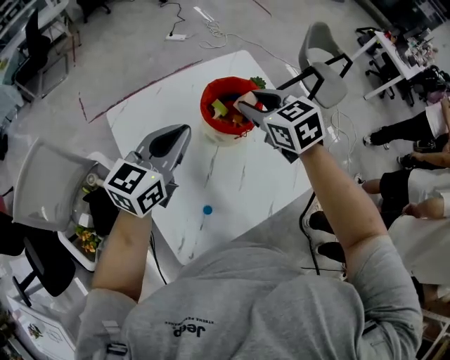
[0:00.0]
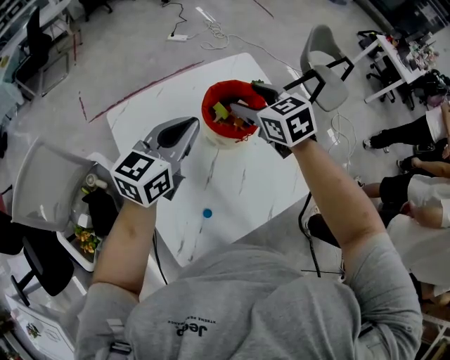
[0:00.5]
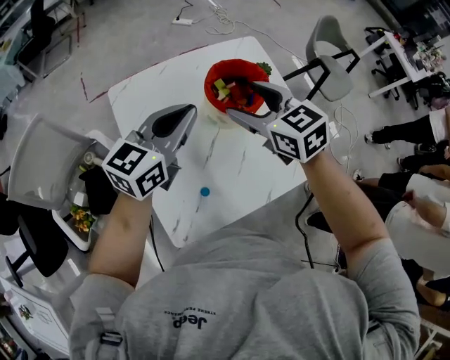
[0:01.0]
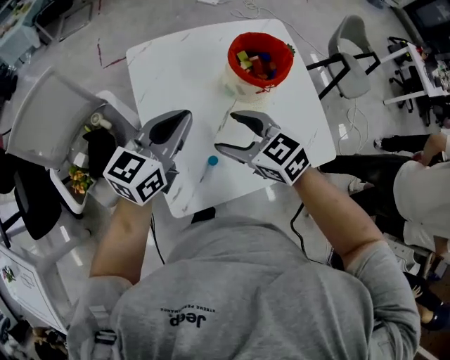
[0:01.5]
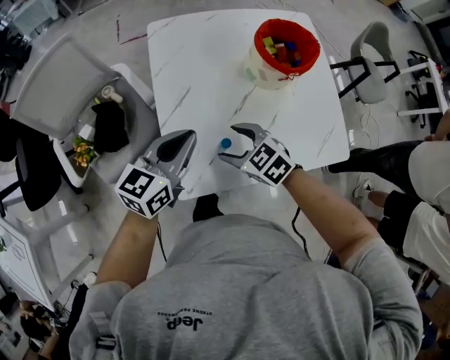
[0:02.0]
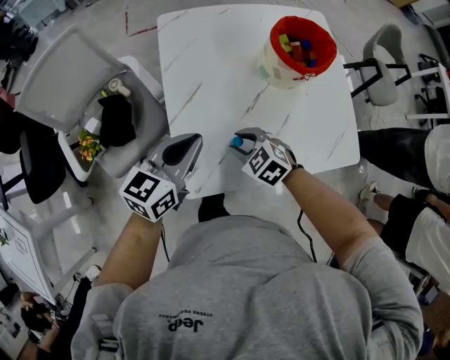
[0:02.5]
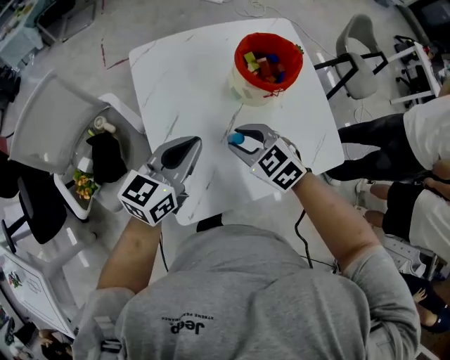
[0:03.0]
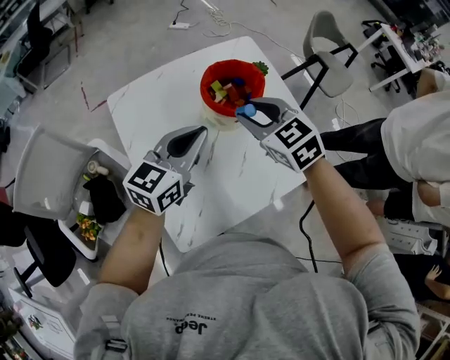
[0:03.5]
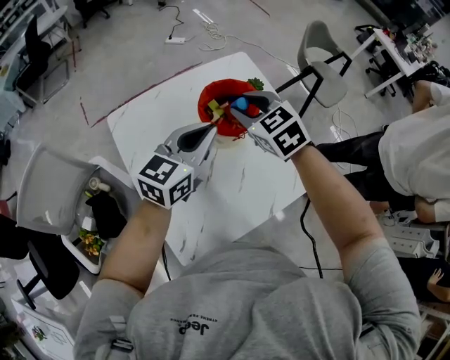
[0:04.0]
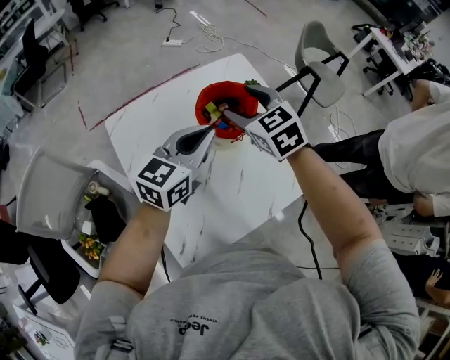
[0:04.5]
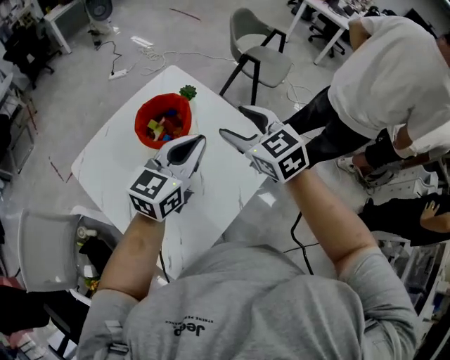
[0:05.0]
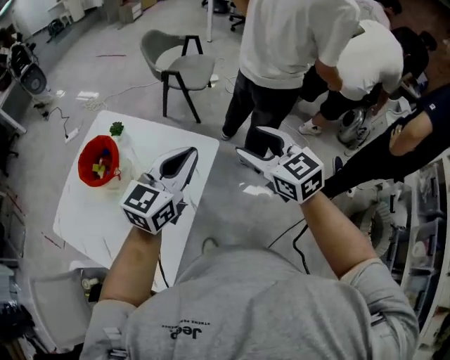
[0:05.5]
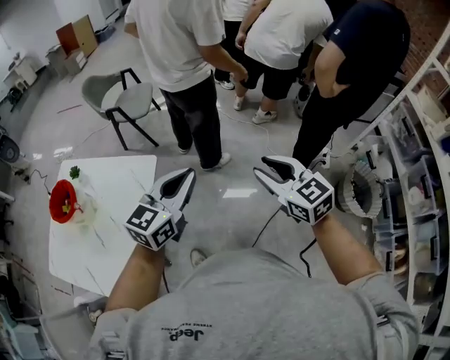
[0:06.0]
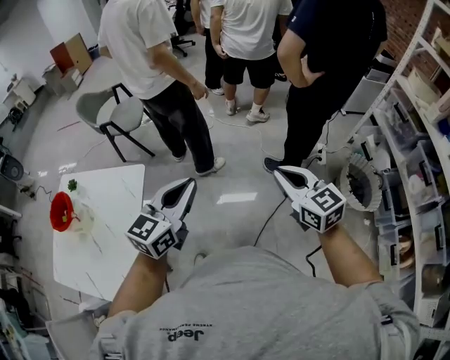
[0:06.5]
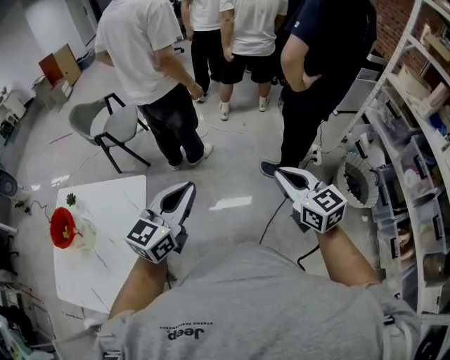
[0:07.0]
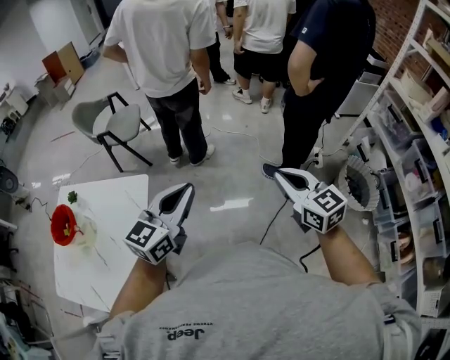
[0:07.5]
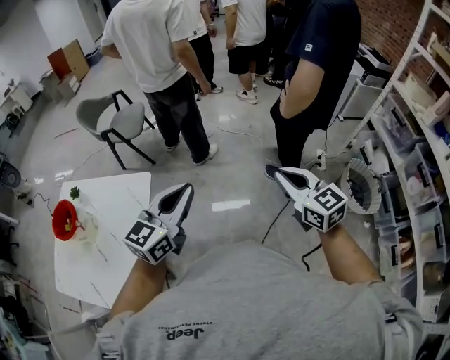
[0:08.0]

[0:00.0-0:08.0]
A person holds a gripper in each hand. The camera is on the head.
0:00.0 to 0:02.0: The left gripper ends up approximately 25 cm from where it was; the right gripper changes place by roughly 35 cm, turns by approximately 40 degrees, and opens up.
0:02.0 to 0:04.0: The left gripper moves some 25 cm, and swivels approximately 20 degrees. Meanwhile the right gripper changes place by about 35 cm, swivels approximately 40 degrees, and closes up.
0:04.0 to 0:06.0: Both grippers are carried roughly 70 cm. The left gripper turns by roughly 50 degrees. Meanwhile the right gripper swivels some 60 degrees, and opens, then closes once more.
0:06.0 to 0:08.0: The right gripper heads to the right, covering about 10 cm, and closes up.

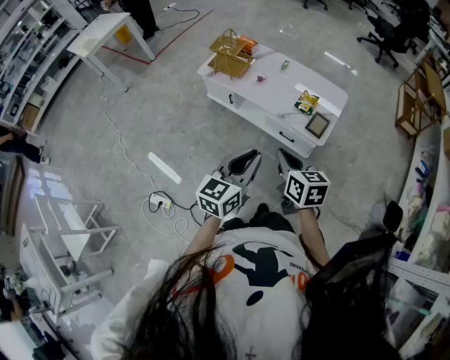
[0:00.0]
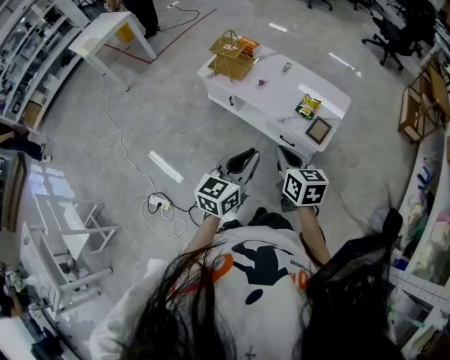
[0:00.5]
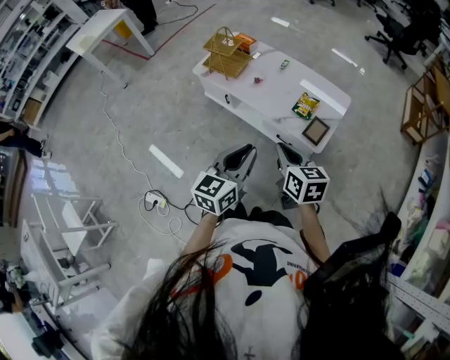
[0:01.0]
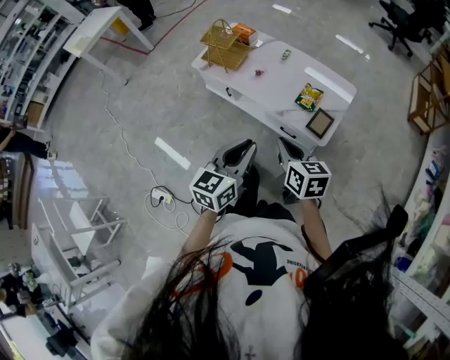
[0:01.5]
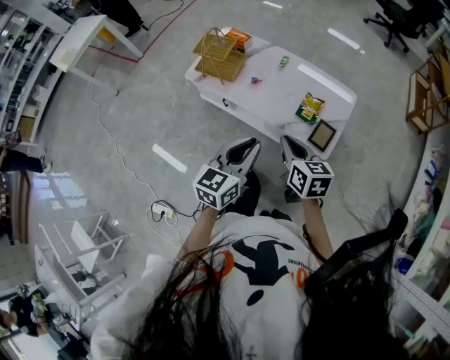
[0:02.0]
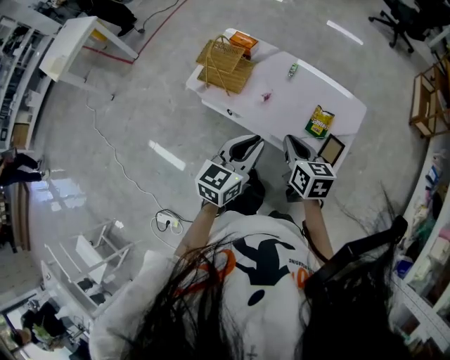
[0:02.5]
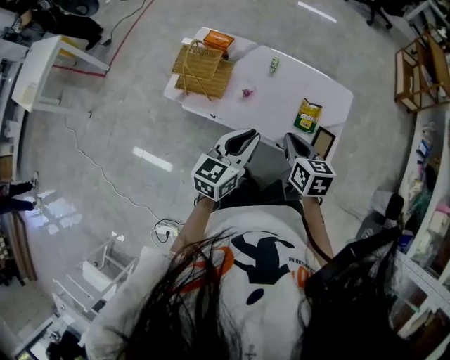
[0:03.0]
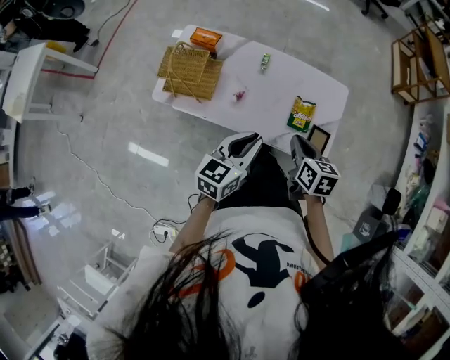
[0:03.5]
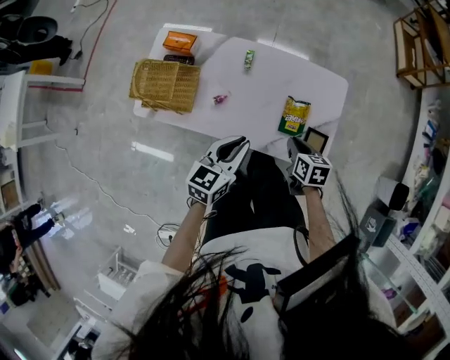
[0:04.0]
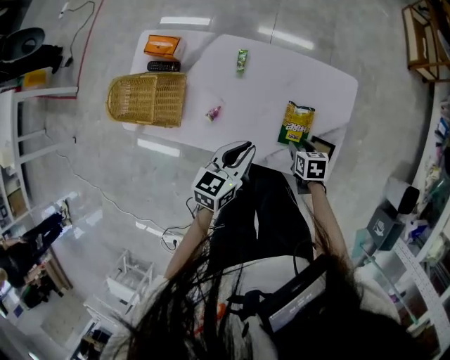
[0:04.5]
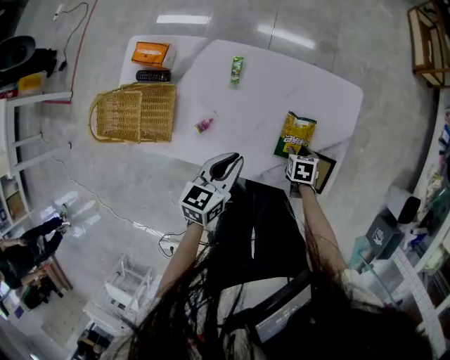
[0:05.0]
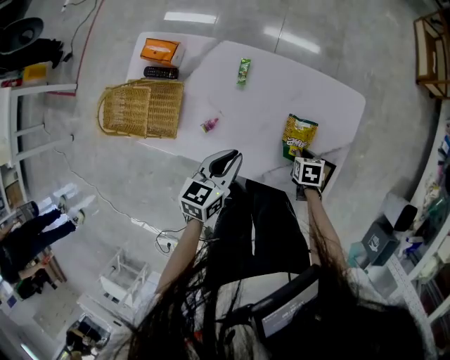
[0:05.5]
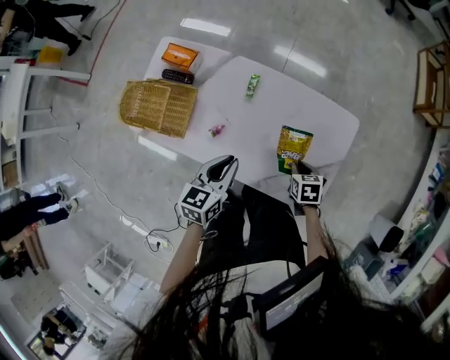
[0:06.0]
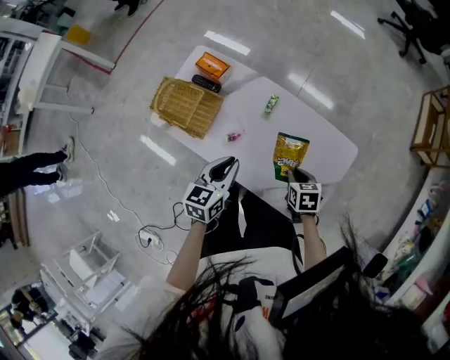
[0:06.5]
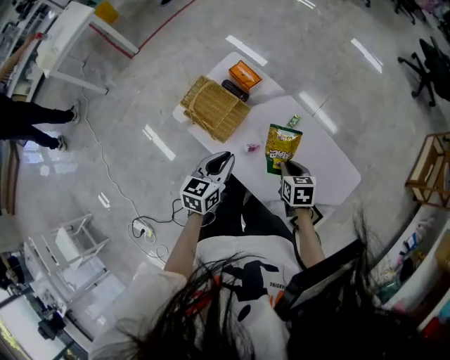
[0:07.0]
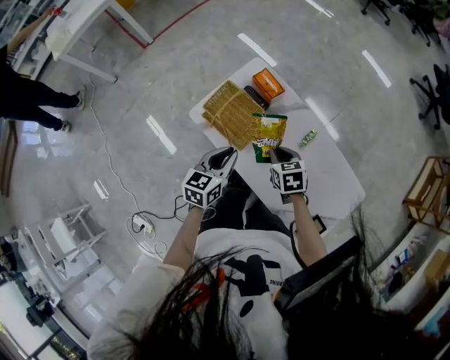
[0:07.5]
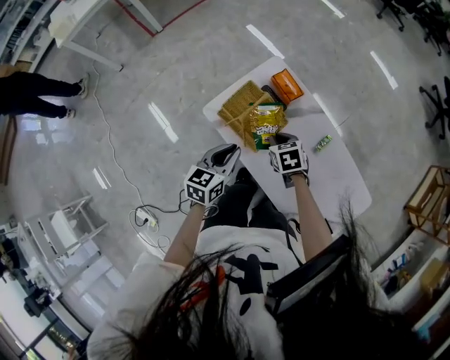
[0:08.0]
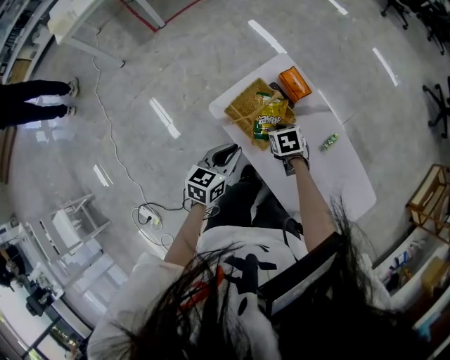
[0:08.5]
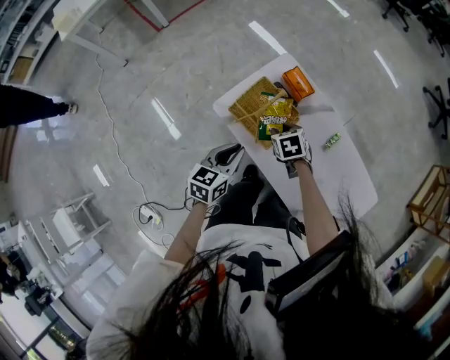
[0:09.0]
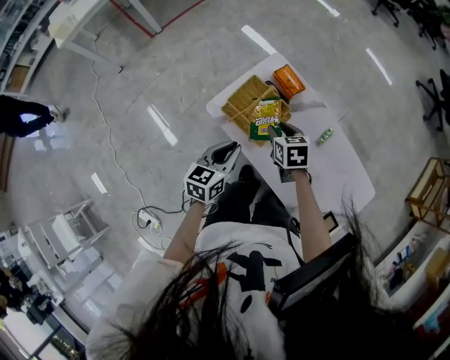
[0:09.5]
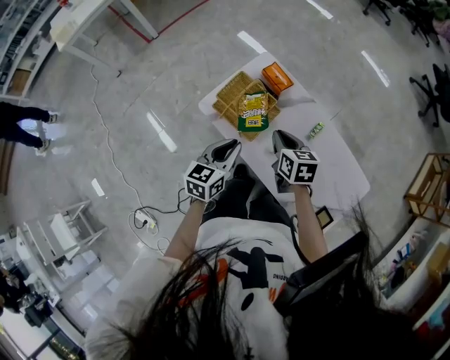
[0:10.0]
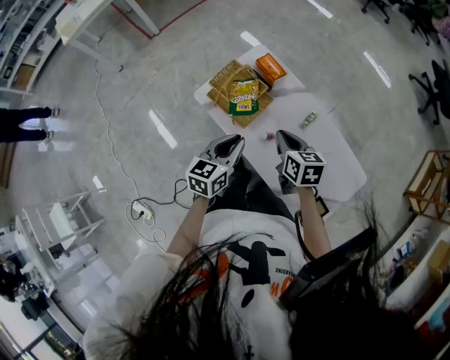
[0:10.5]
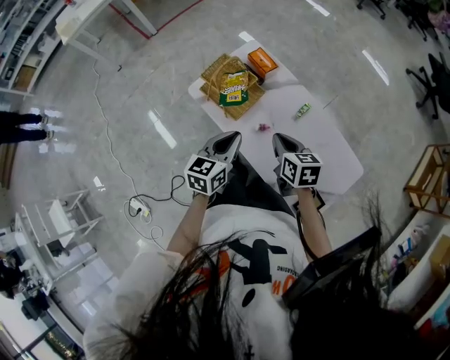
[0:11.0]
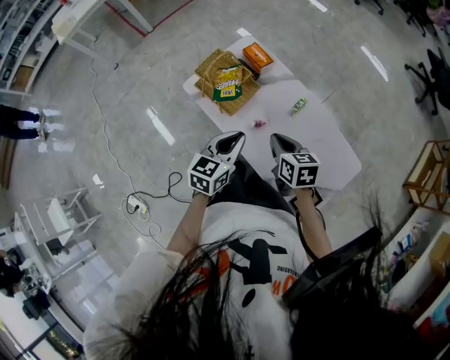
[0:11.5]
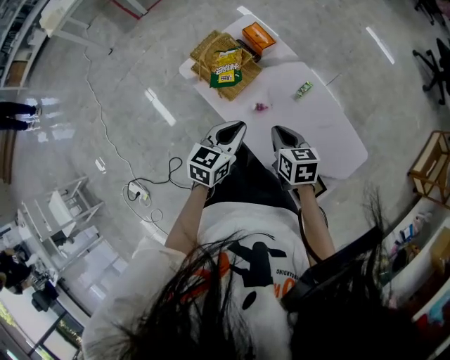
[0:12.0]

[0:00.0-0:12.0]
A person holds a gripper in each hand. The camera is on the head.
0:00.0 to 0:02.0: Both grippers travel together forward, roughly 20 cm.
0:02.0 to 0:04.0: The left gripper travels forward and downward by about 30 cm, and rotates some 20 degrees. Meanwhile the right gripper heads downward and forward, covering about 30 cm, and swivels some 30 degrees.
0:04.0 to 0:06.0: The left gripper heads forward and downward, covering approximately 10 cm. Meanwhile the right gripper shifts some 15 cm downward and forward, swivels roughly 20 degrees, and opens, then closes again.
0:06.0 to 0:08.0: The left gripper shifts by about 30 cm, and swivels roughly 20 degrees; the right gripper ends up about 50 cm from where it was, and turns by approximately 40 degrees.
0:08.0 to 0:10.0: The left gripper ends up about 5 cm from where it was; the right gripper travels upward and backward by approximately 10 cm, changes its angle by some 30 degrees, and opens, then closes once more.
0:10.0 to 0:12.0: The left gripper goes approximately 15 cm to the right and backward. The right gripper moves backward and to the right, some 15 cm.

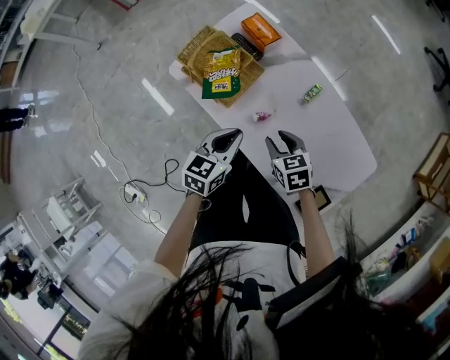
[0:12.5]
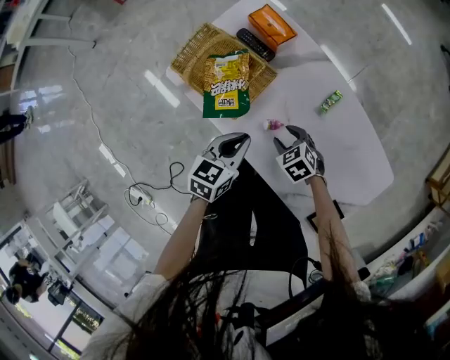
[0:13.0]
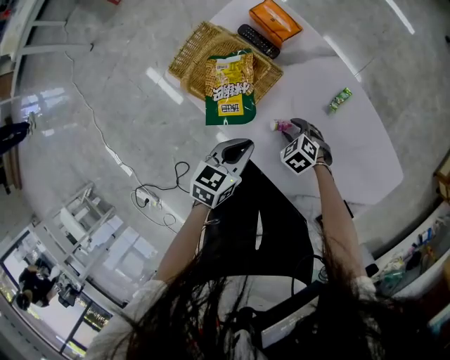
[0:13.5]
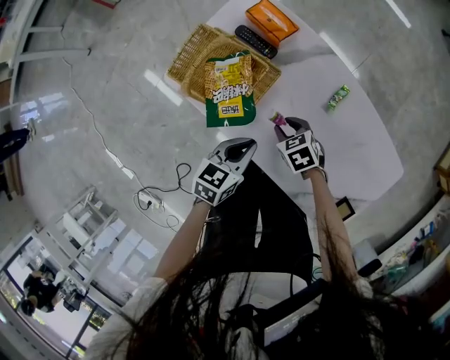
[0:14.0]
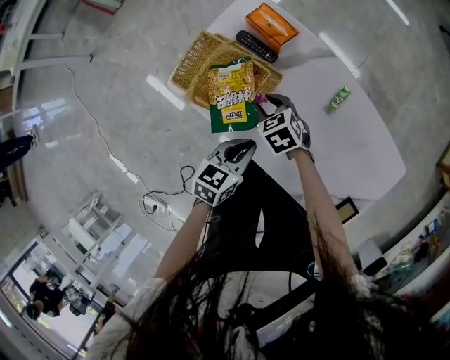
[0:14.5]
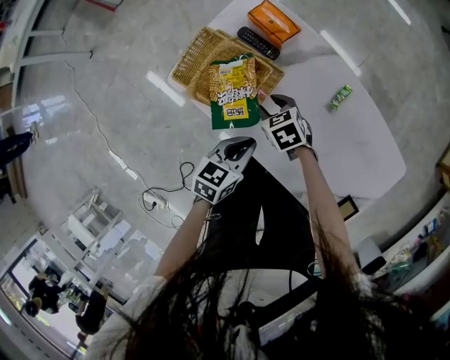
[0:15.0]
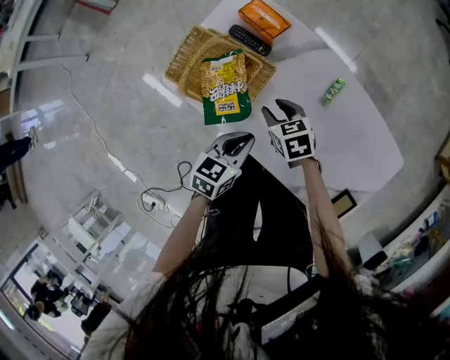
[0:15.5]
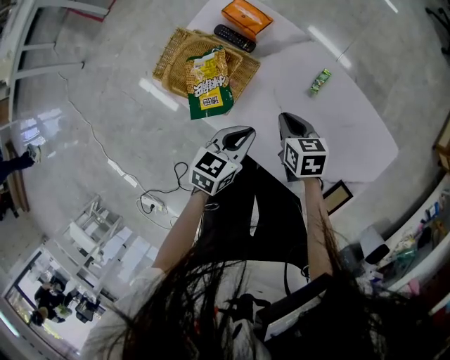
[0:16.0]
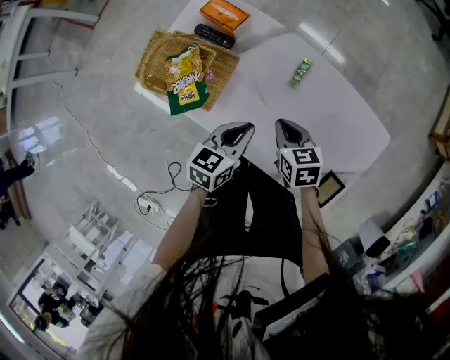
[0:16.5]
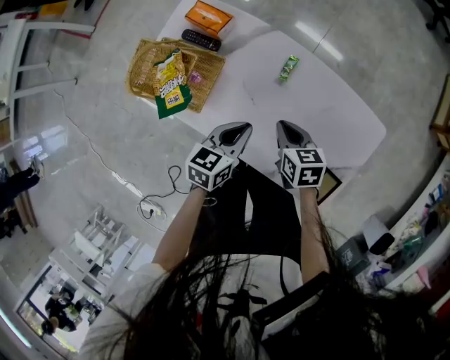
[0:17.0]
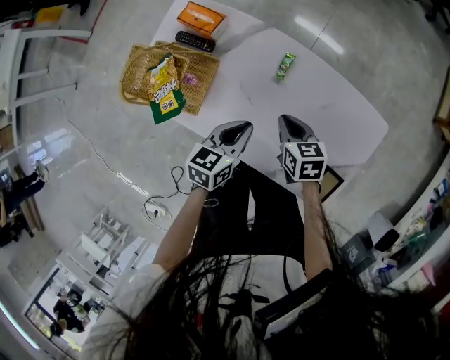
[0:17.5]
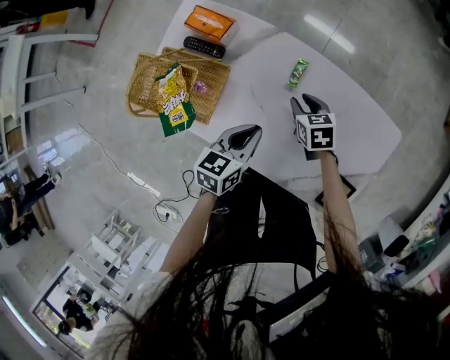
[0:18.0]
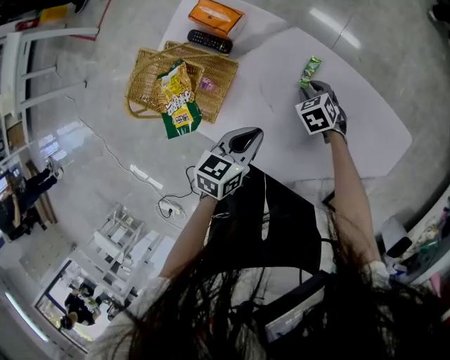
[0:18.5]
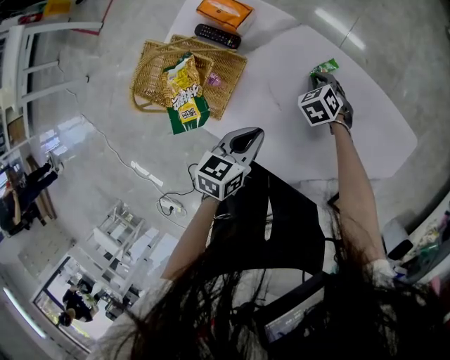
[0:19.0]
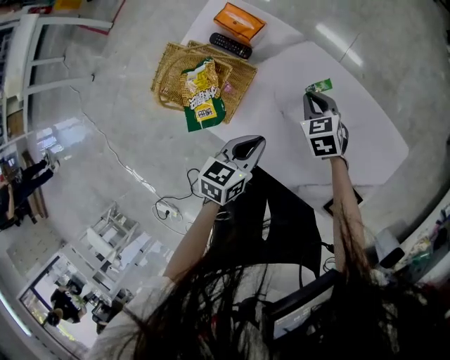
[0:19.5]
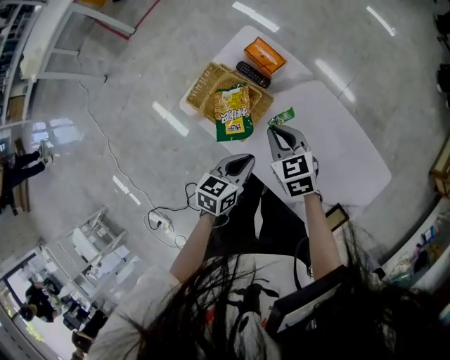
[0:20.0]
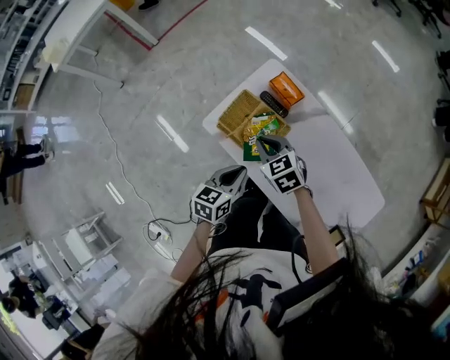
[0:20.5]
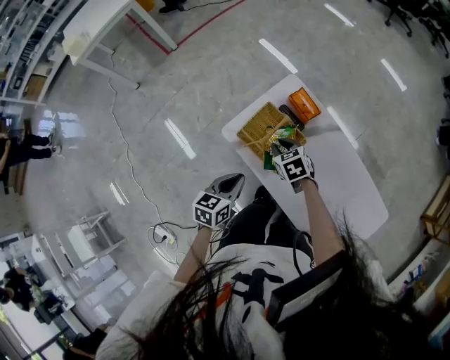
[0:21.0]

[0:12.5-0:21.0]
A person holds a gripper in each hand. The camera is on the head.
0:12.5 to 0:14.5: The right gripper travels forward, to the left and downward by some 20 cm. Meanwhile the left gripper heads downward, covering about 10 cm.
0:14.5 to 0:16.5: The left gripper heads to the right, covering roughly 10 cm, while the right gripper heads to the right and backward, covering roughly 20 cm, rotates about 30 degrees, and closes up.
0:16.5 to 0:19.0: The right gripper shifts some 20 cm downward and forward, changes its angle by about 40 degrees, and opens, then closes once more.
0:19.0 to 0:21.0: The right gripper ends up roughly 40 cm from where it was, and changes its angle by roughly 30 degrees. Meanwhile the left gripper ends up roughly 30 cm from where it was, and rotates approximately 20 degrees.
